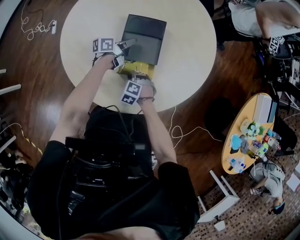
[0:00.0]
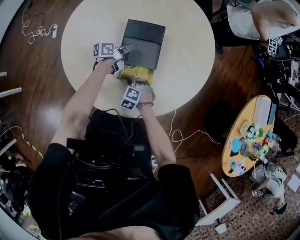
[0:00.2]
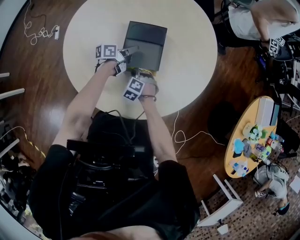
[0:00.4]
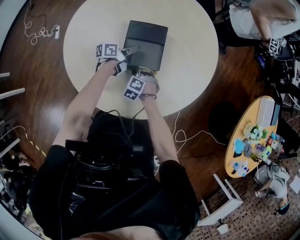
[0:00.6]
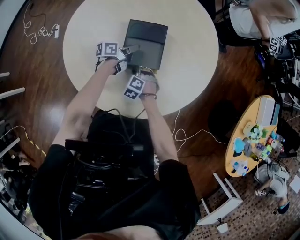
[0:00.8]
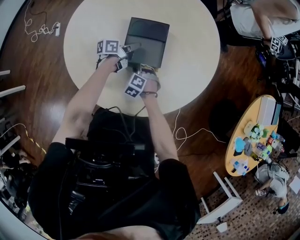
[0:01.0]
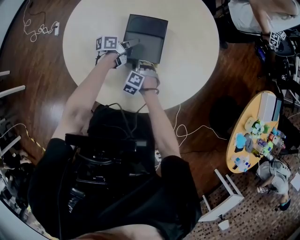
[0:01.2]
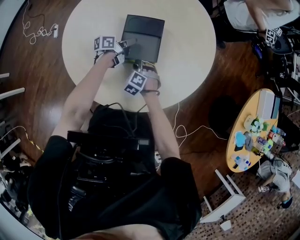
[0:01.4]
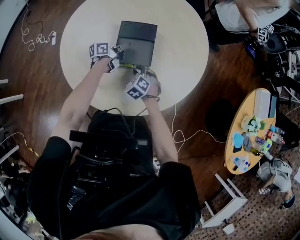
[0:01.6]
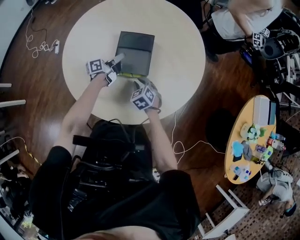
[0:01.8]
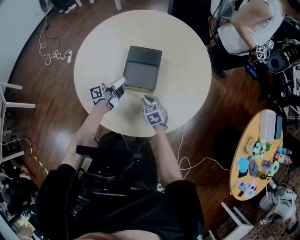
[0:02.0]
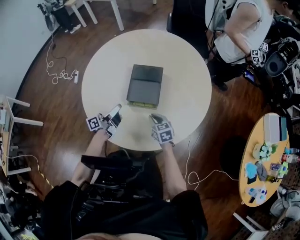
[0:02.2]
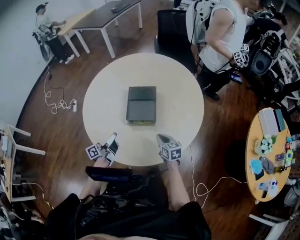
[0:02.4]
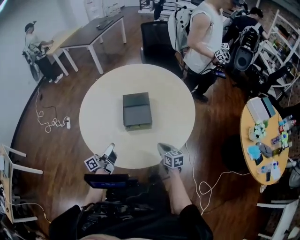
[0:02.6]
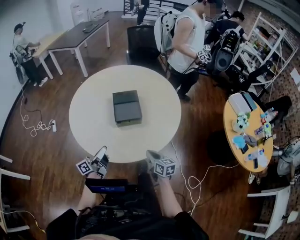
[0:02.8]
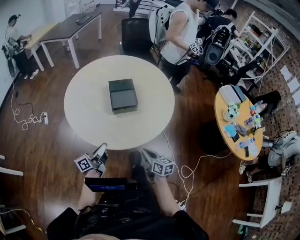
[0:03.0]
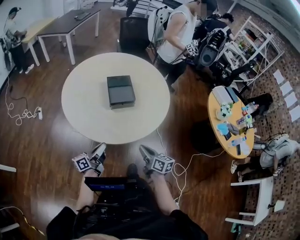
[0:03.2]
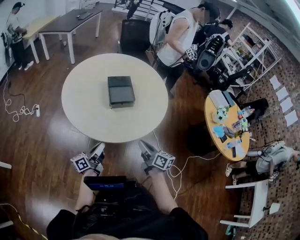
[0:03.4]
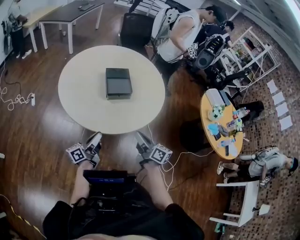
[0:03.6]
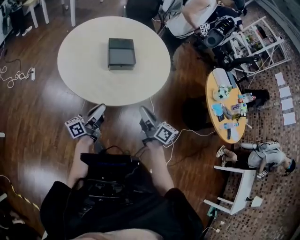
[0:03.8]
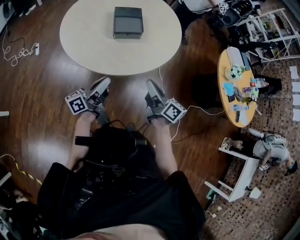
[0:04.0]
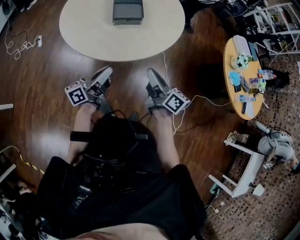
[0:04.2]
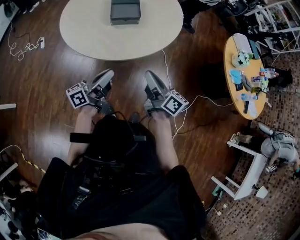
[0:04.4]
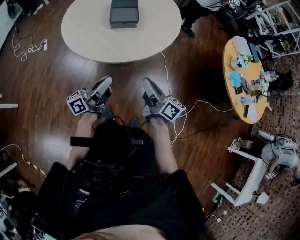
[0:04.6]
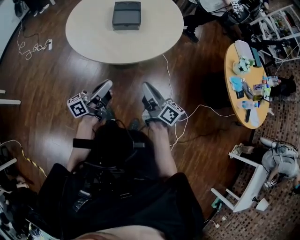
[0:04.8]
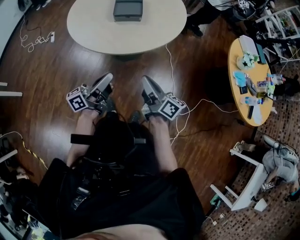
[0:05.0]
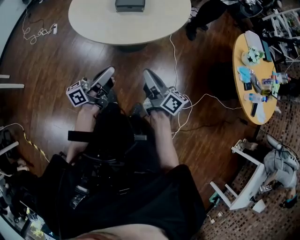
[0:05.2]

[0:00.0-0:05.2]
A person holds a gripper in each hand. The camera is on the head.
0:00.0 to 0:01.8: The right gripper goes some 10 cm upward, to the right and forward, and rotates roughly 30 degrees.
0:01.8 to 0:03.4: The right gripper travels backward and upward by some 40 cm, and tilts its fingers some 40 degrees upward; the left gripper shifts some 50 cm backward.
0:03.4 to 0:05.2: The left gripper travels to the right, backward and upward by some 20 cm; the right gripper goes some 15 cm backward and to the right, and rotates approximately 20 degrees.

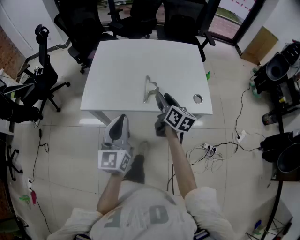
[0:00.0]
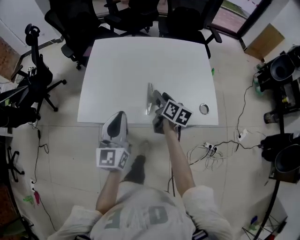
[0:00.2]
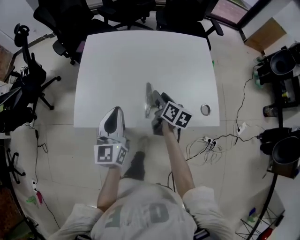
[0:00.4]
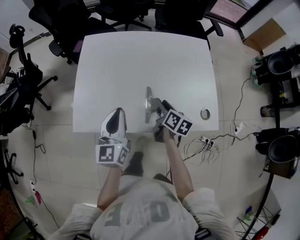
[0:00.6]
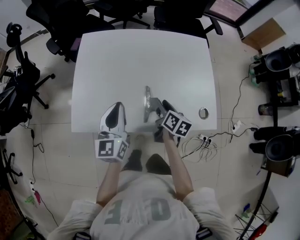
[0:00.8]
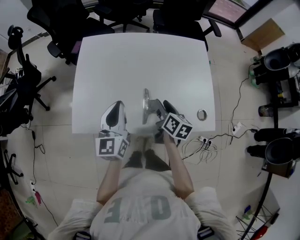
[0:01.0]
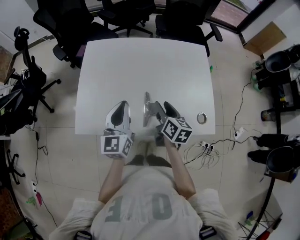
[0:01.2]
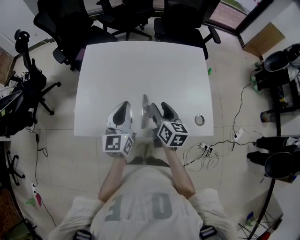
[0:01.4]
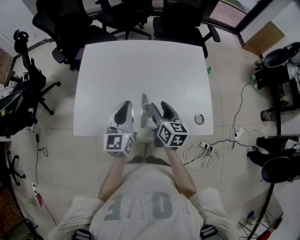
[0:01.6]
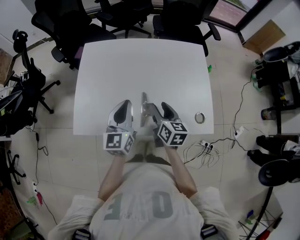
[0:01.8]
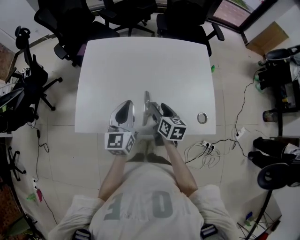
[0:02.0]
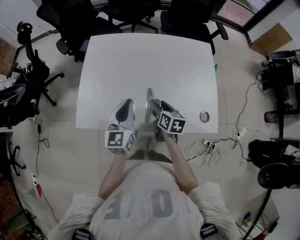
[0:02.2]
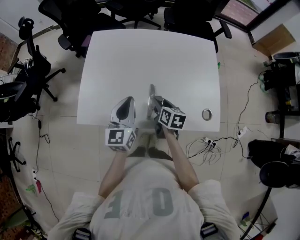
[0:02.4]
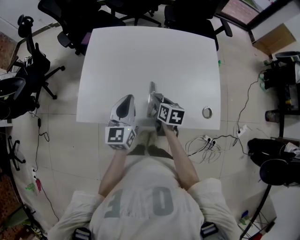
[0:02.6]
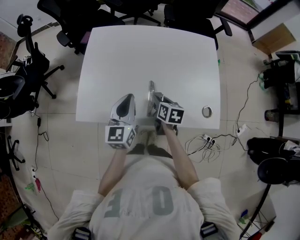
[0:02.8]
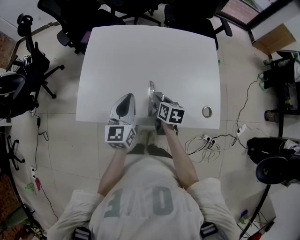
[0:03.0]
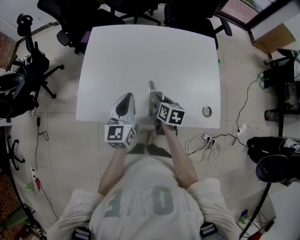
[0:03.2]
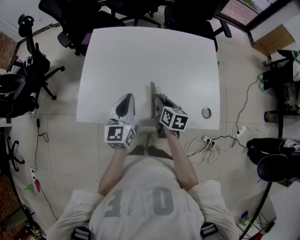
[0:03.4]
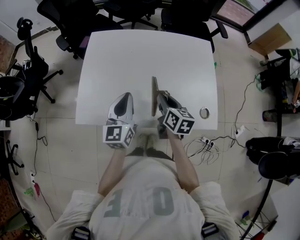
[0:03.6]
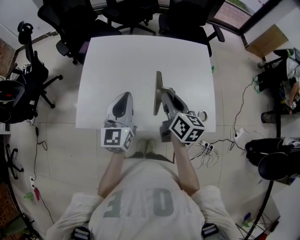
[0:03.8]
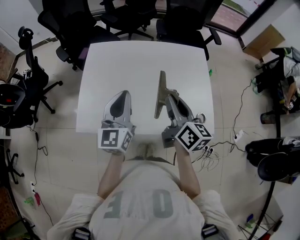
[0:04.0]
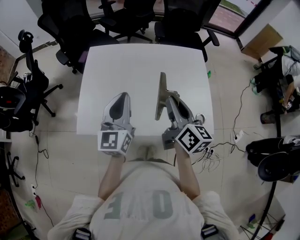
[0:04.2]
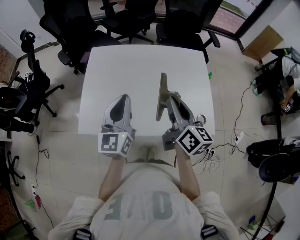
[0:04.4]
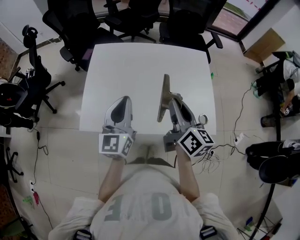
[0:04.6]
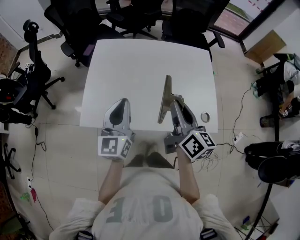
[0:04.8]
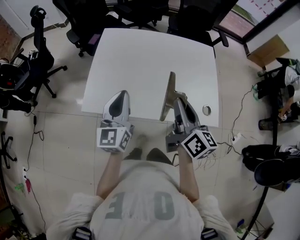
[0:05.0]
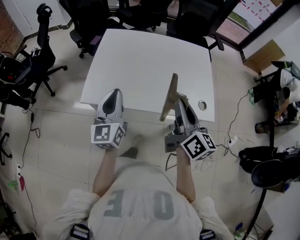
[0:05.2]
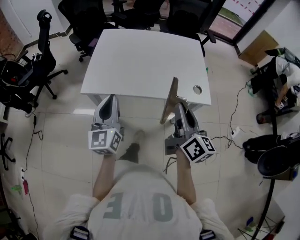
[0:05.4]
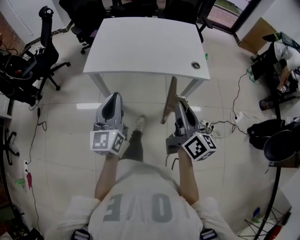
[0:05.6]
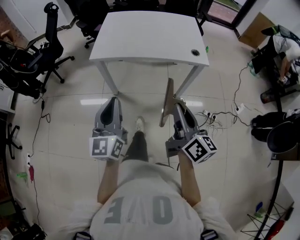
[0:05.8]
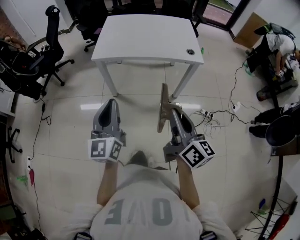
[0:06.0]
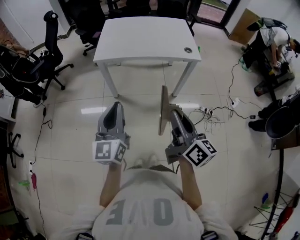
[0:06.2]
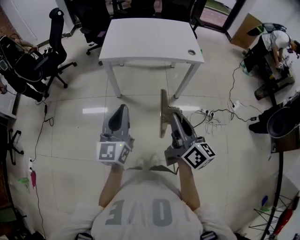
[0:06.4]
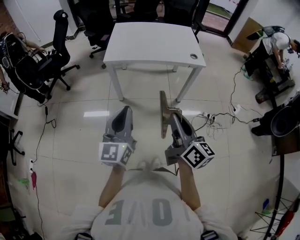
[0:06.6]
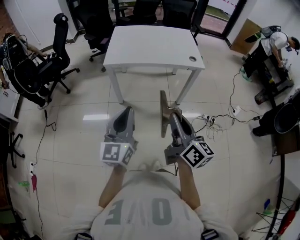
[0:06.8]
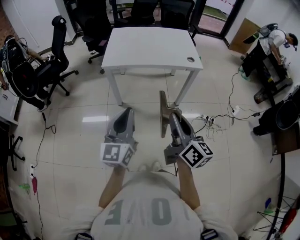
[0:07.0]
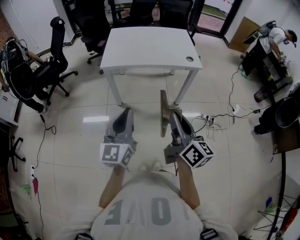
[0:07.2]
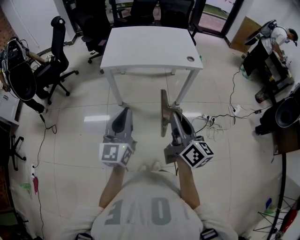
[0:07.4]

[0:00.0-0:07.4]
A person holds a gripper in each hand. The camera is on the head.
0:00.0 to 0:01.4: The right gripper travels forward by roughly 10 cm, while the left gripper goes about 25 cm forward.
0:01.4 to 0:03.0: The right gripper is displaced downward by some 10 cm, turns by some 20 degrees, and closes its fingers.
0:03.0 to 0:04.4: The left gripper heads upward, covering some 10 cm, while the right gripper shifts approximately 25 cm upward, and points its fingers some 40 degrees further upward.
0:04.4 to 0:06.0: The pair of grippers is taken backward, some 50 cm.
0:06.0 to 0:07.4: The right gripper moves roughly 5 cm; the left gripper shifts approximately 5 cm backward.

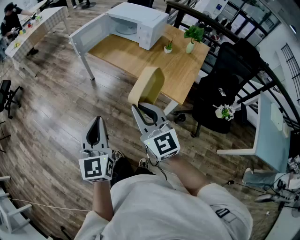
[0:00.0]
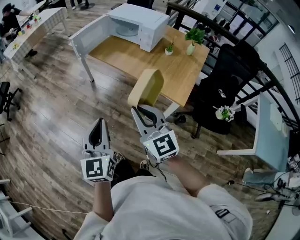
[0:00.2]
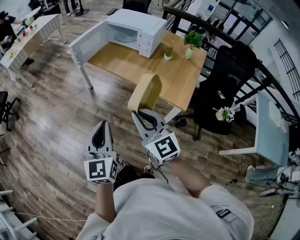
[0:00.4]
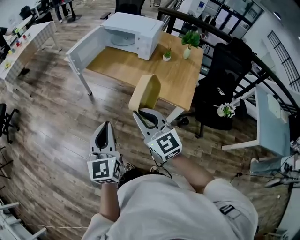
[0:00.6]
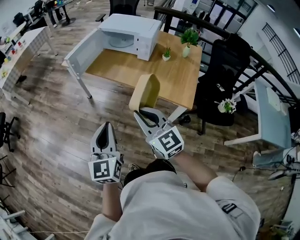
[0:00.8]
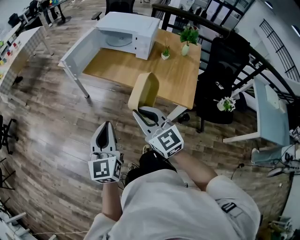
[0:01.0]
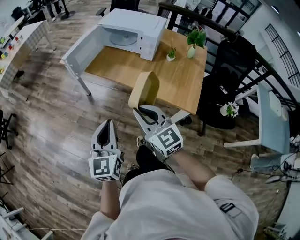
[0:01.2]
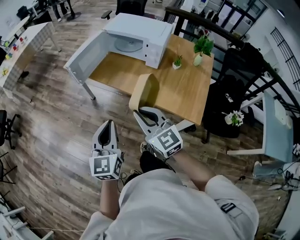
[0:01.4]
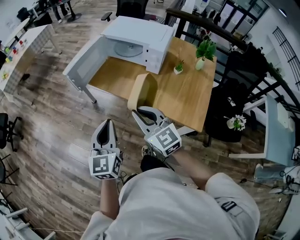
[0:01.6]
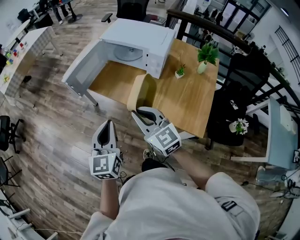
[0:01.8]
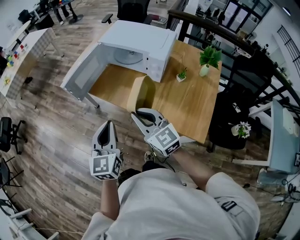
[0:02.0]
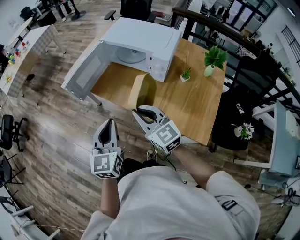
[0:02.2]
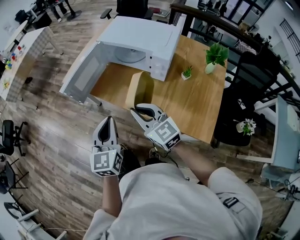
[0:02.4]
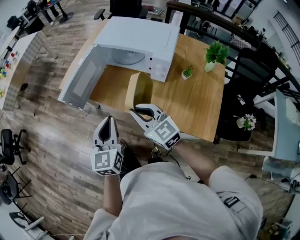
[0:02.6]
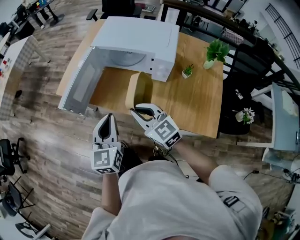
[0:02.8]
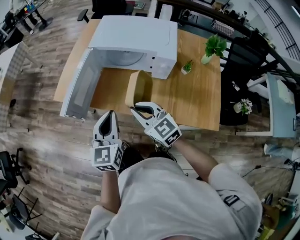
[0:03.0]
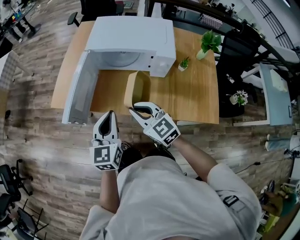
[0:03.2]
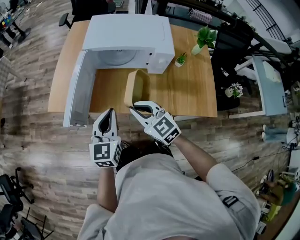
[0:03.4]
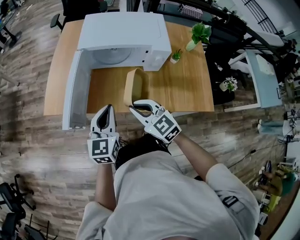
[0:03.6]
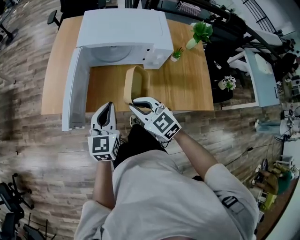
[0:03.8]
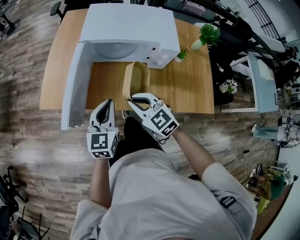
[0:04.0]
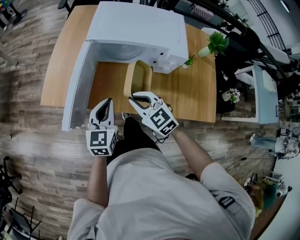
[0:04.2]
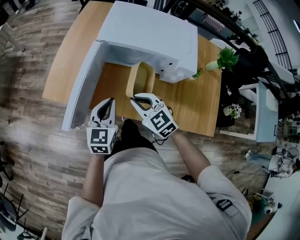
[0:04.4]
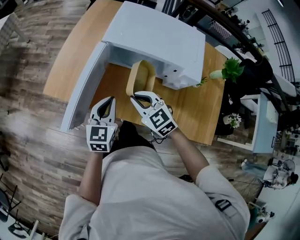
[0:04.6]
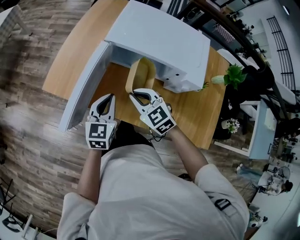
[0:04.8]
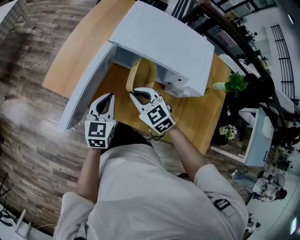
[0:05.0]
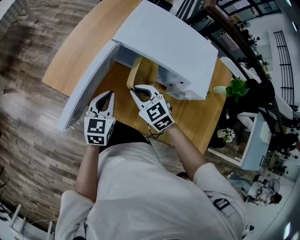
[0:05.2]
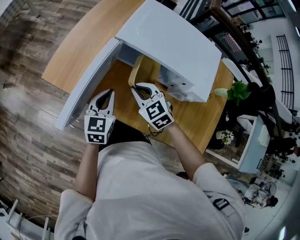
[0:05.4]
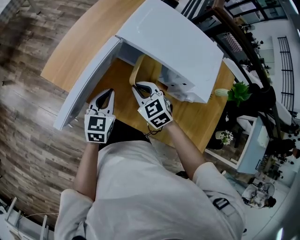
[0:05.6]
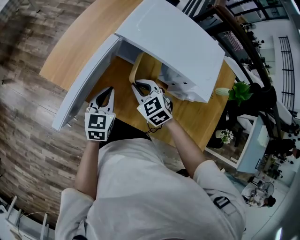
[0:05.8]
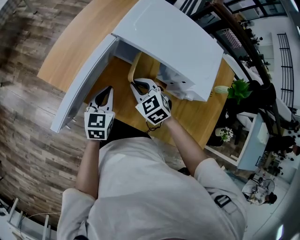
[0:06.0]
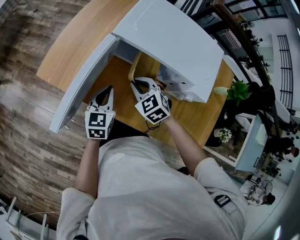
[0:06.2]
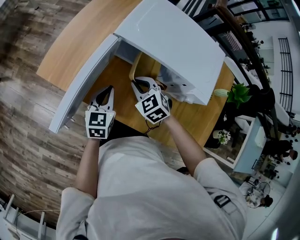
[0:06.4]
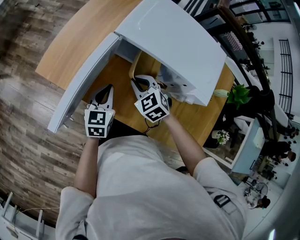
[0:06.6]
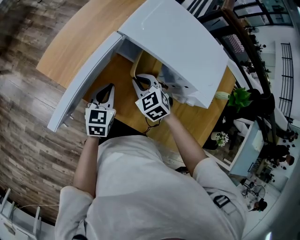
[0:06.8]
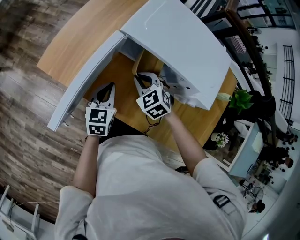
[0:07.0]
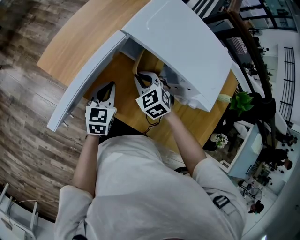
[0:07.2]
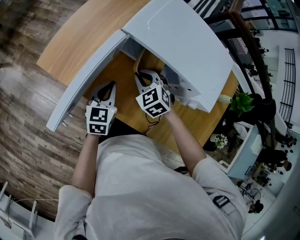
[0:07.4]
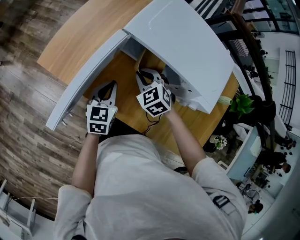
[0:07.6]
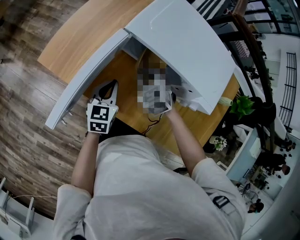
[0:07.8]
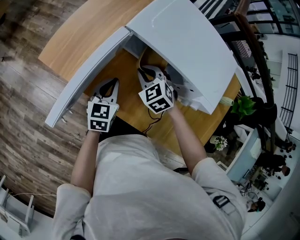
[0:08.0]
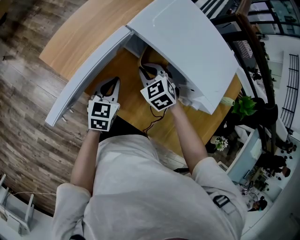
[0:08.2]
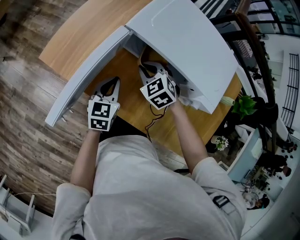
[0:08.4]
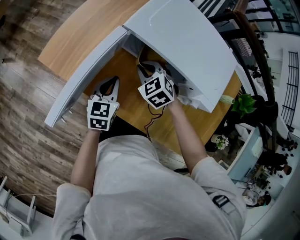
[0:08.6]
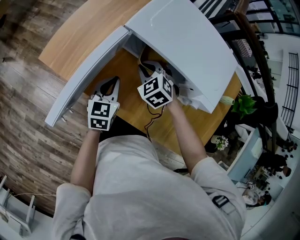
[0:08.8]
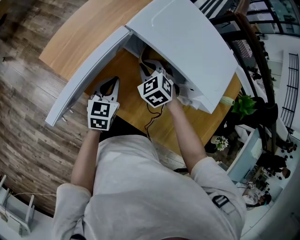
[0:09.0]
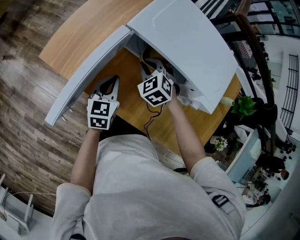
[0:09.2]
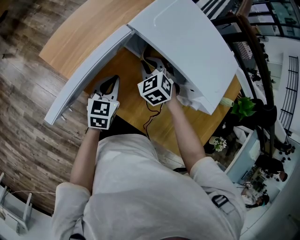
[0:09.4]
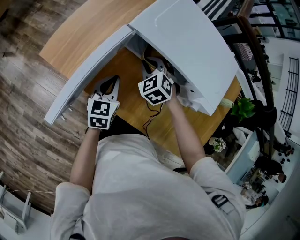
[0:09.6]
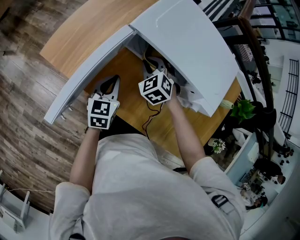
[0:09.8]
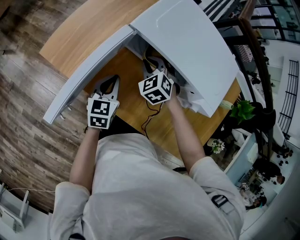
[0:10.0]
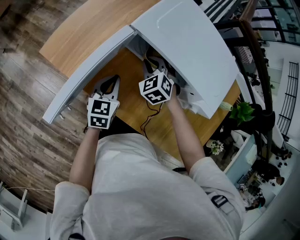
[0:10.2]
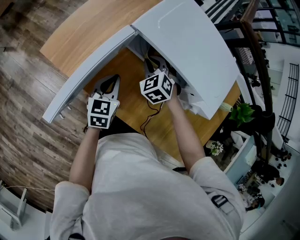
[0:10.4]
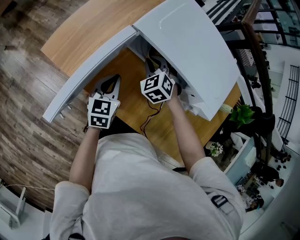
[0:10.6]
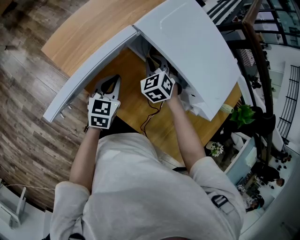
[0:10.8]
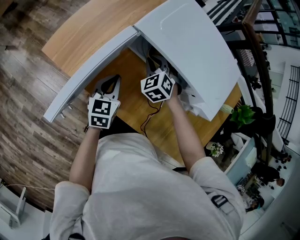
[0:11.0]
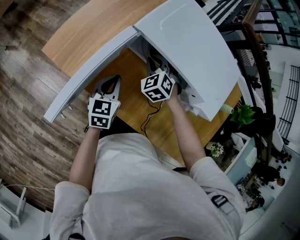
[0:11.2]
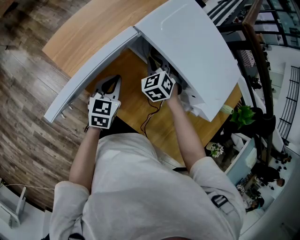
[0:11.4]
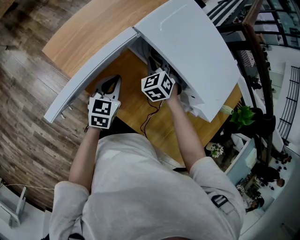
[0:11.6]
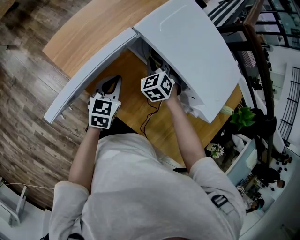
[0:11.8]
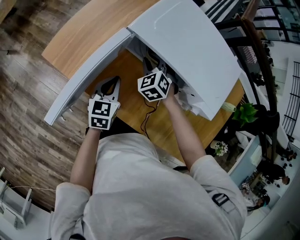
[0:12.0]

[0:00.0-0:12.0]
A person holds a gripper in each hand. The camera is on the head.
0:00.0 to 0:01.6: Both grippers travel together forward, about 25 cm.
0:01.6 to 0:03.0: The two grippers go roughly 25 cm forward.
0:03.0 to 0:04.4: The two grippers go approximately 15 cm forward and downward.
0:04.4 to 0:06.0: The right gripper travels forward and downward by roughly 10 cm. The left gripper is displaced downward and forward by approximately 10 cm.
0:06.0 to 0:07.6: The right gripper moves approximately 5 cm.
0:07.6 to 0:10.4: The grippers make only small movements.
0:10.4 to 0:12.0: The grippers stay close to where they were, moving slightly.
